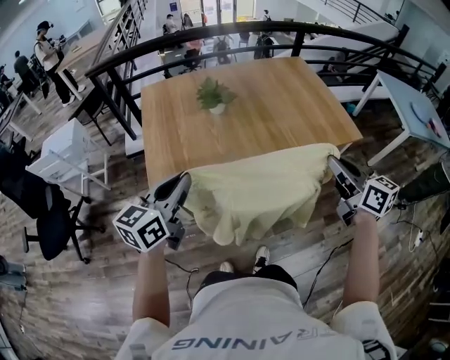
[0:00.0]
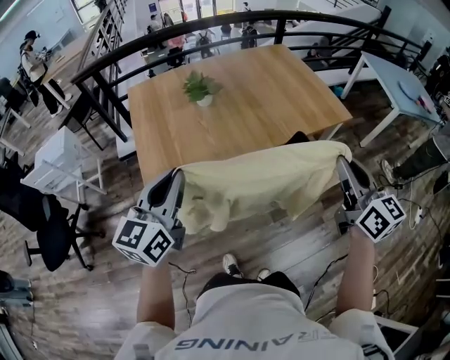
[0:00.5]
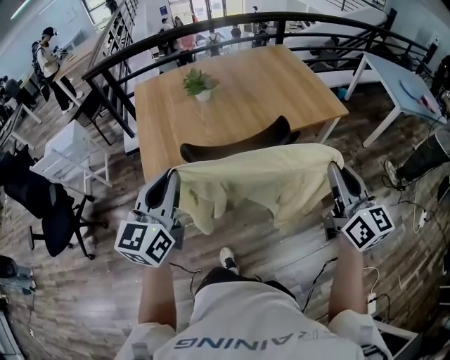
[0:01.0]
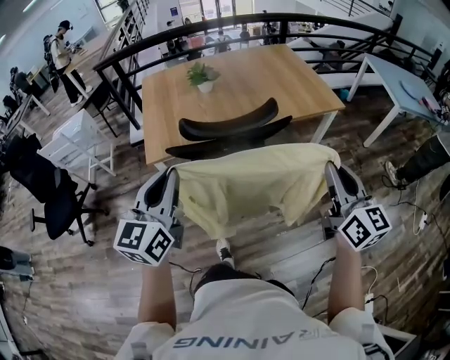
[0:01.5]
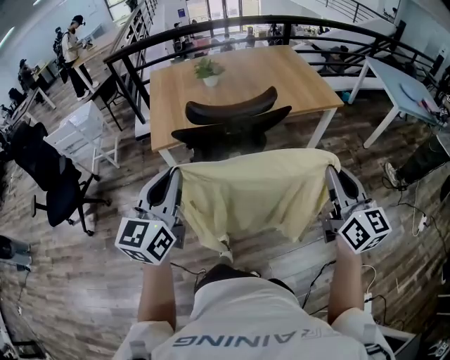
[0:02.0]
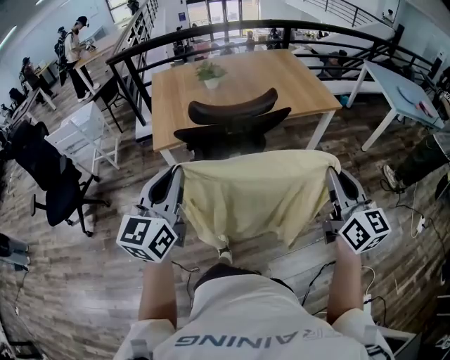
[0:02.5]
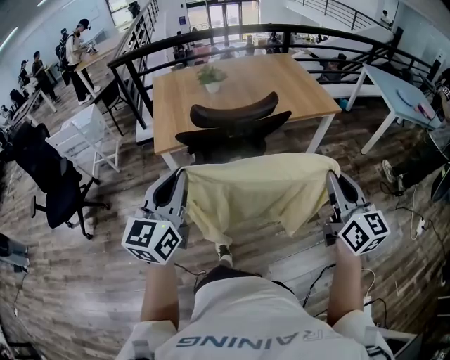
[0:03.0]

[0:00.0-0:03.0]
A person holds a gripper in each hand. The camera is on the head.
0:00.0 to 0:01.5: Both grippers move backward, roughly 25 cm. The right gripper rotates about 20 degrees, while the left gripper turns by approximately 20 degrees.
0:01.5 to 0:03.0: Both grippers move backward, approximately 10 cm.

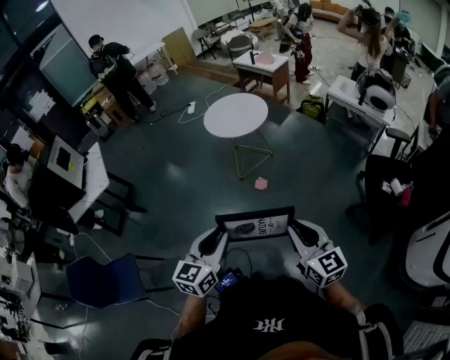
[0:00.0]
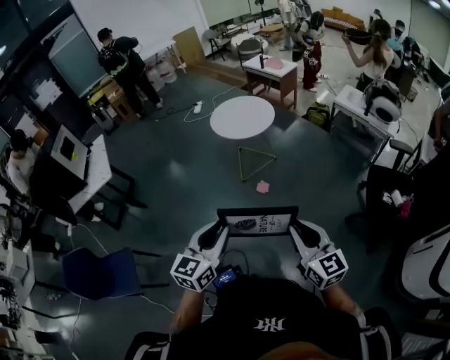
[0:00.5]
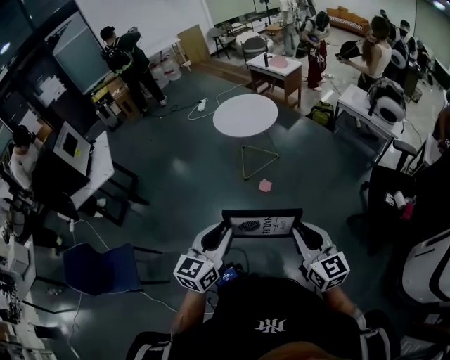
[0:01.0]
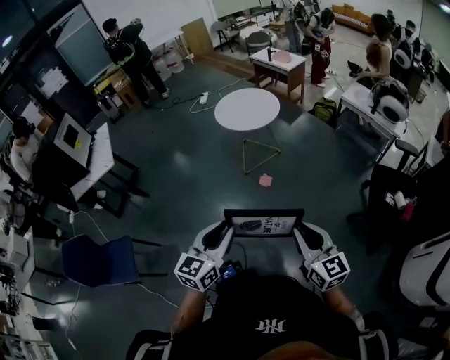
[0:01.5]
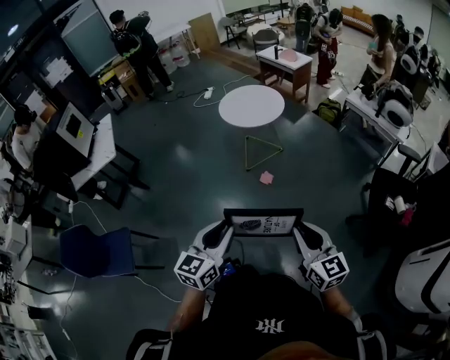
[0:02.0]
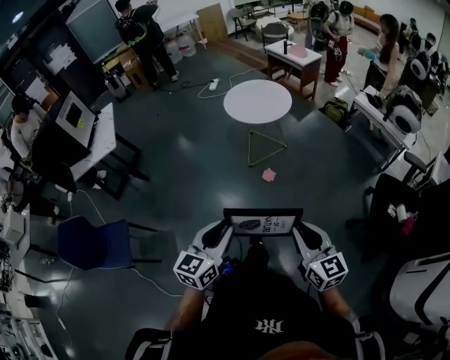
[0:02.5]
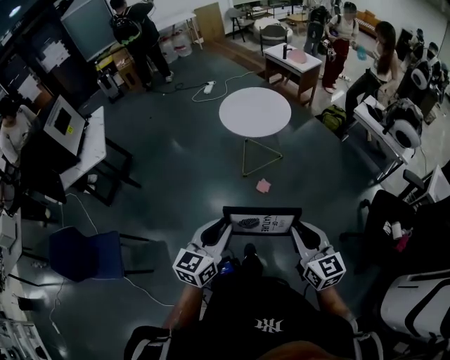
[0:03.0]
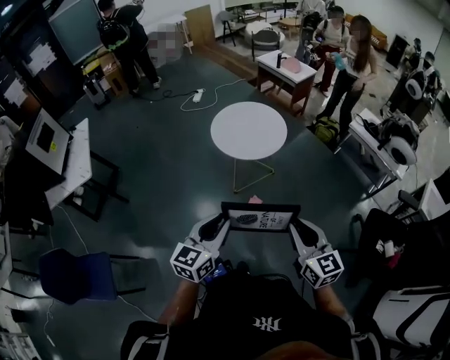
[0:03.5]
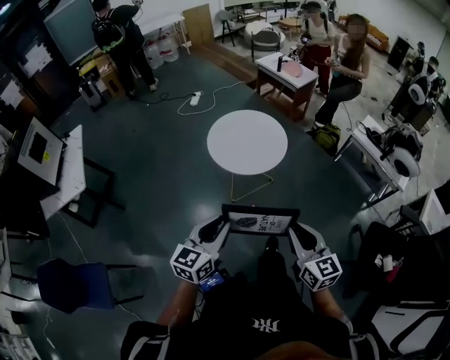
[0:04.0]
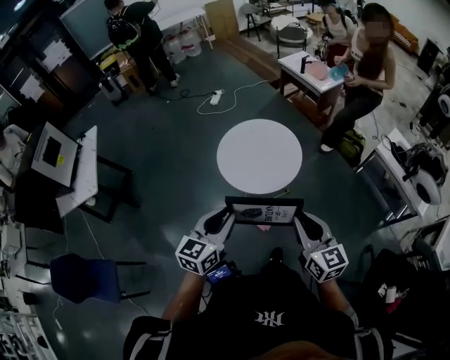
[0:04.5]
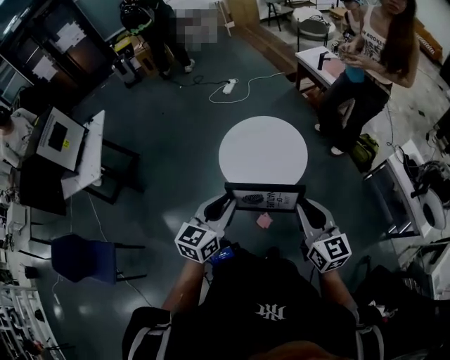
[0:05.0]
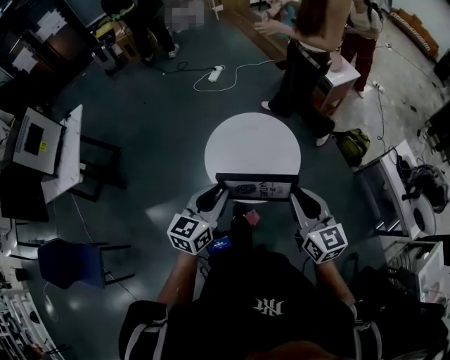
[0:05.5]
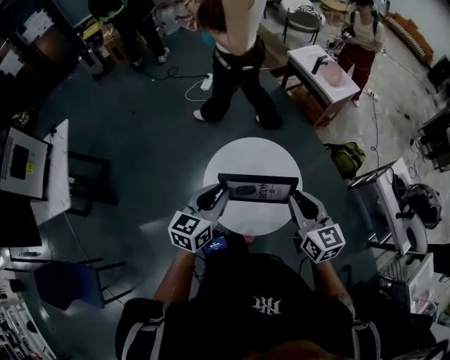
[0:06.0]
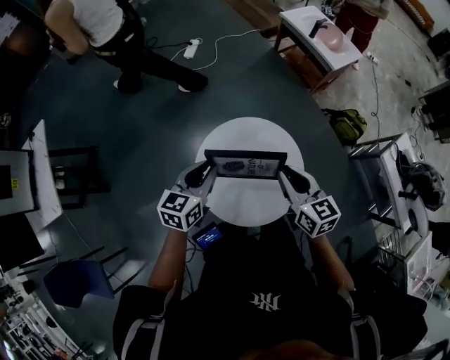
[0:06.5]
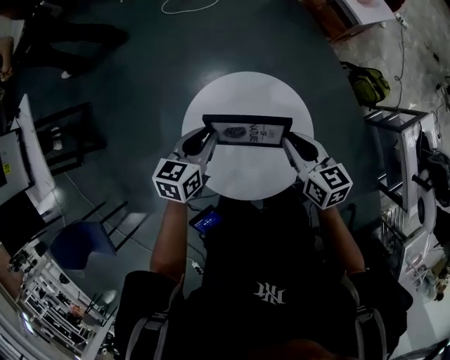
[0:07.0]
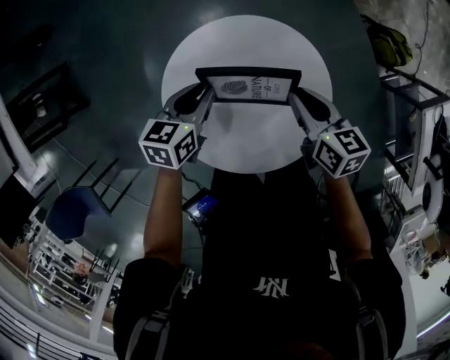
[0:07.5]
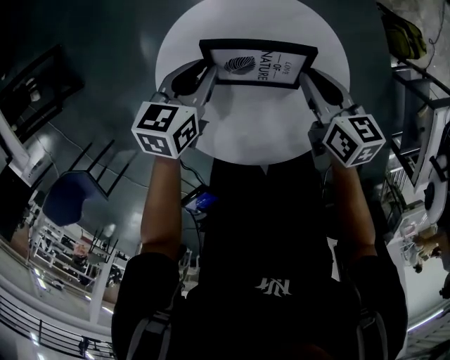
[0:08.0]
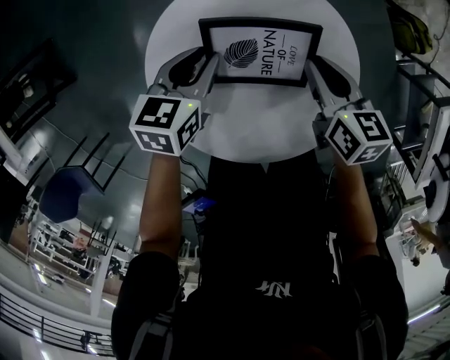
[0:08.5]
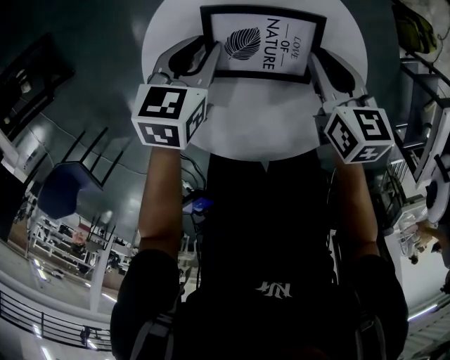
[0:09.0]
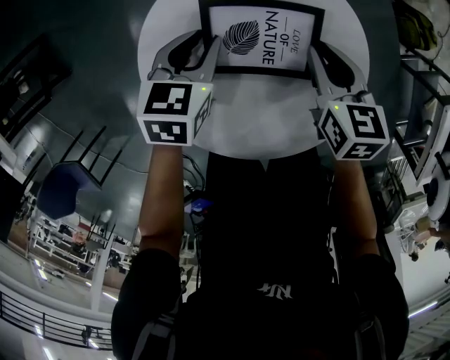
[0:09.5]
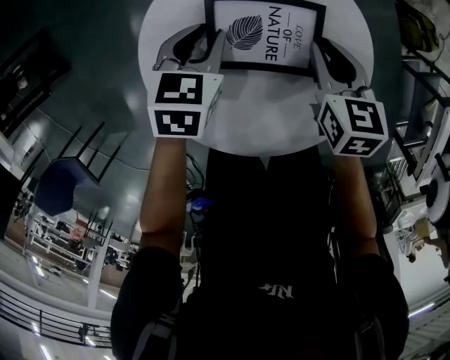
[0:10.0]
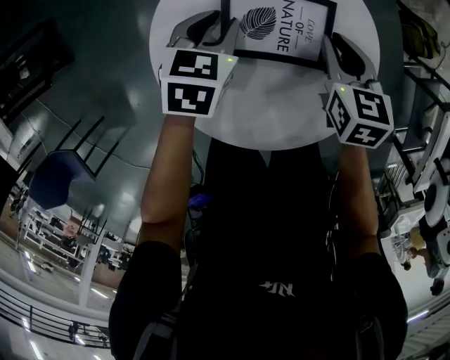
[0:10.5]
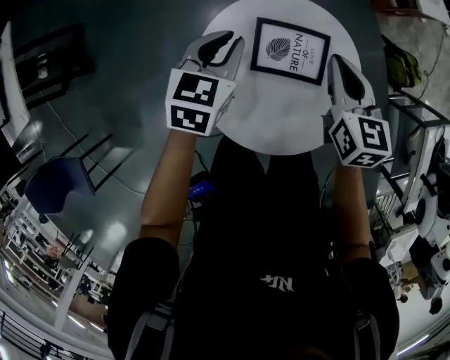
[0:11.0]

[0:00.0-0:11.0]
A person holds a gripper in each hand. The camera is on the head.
0:00.0 to 0:02.0: The grippers move only a little.
0:02.0 to 0:03.5: The two grippers go roughly 30 cm forward.
0:03.5 to 0:05.5: The two grippers travel together, forward, approximately 50 cm.
0:05.5 to 0:07.5: The grippers both shift forward and downward by approximately 50 cm. The left gripper swivels roughly 30 degrees; the right gripper turns by roughly 40 degrees.
0:07.5 to 0:09.0: Both grippers travel together downward, some 10 cm.
0:09.0 to 0:11.0: Both grippers travel together upward, roughly 15 cm. The right gripper swivels approximately 20 degrees.

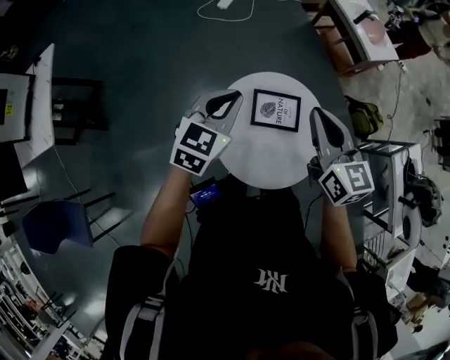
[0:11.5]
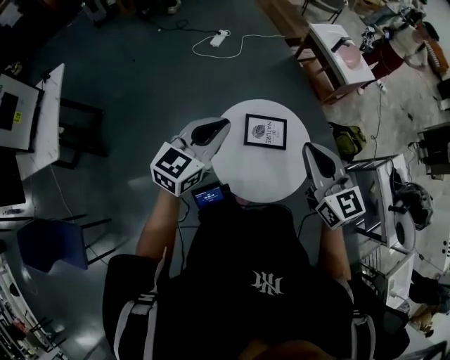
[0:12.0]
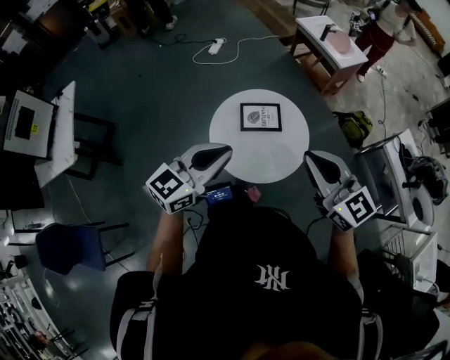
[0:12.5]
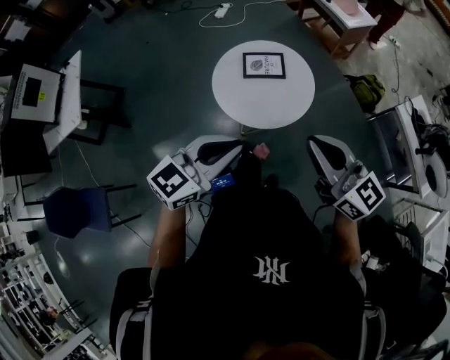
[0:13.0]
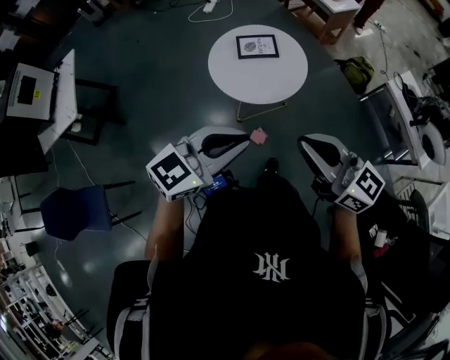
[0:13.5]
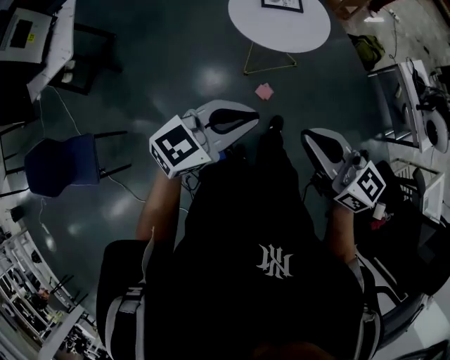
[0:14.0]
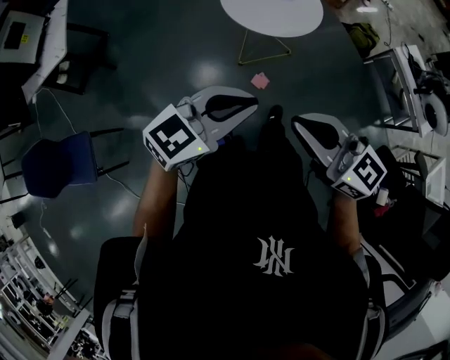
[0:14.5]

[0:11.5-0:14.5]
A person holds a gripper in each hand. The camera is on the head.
0:11.5 to 0:13.0: Both grippers are carried backward, roughly 40 cm. The left gripper turns by some 30 degrees. The right gripper turns by about 20 degrees.
0:13.0 to 0:14.5: The left gripper moves backward, roughly 30 cm; the right gripper shifts about 35 cm backward and to the left.

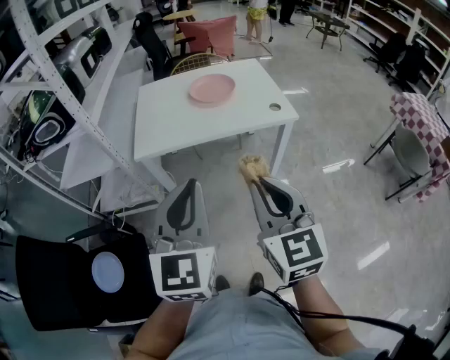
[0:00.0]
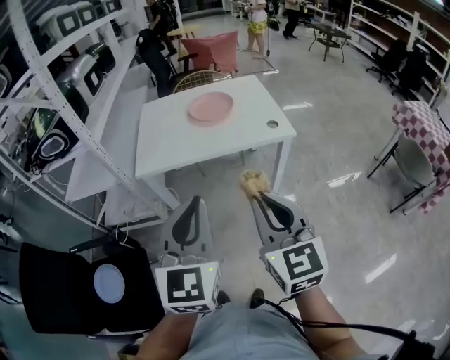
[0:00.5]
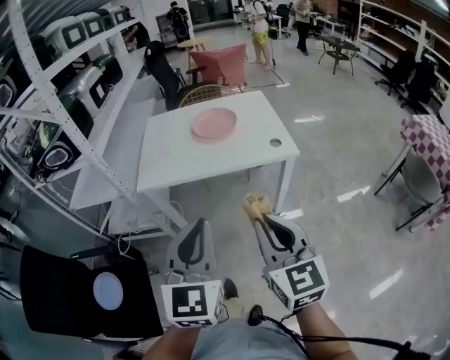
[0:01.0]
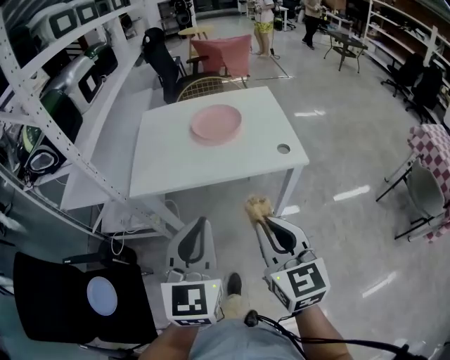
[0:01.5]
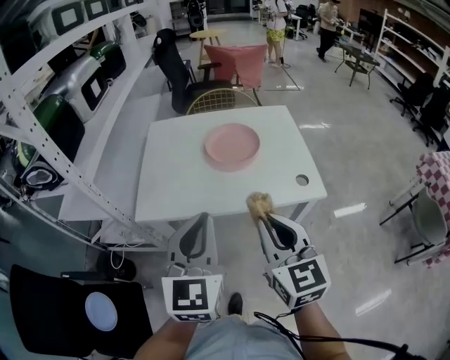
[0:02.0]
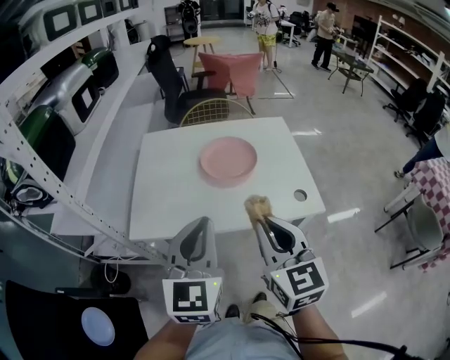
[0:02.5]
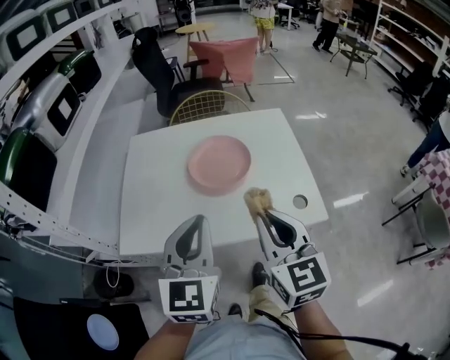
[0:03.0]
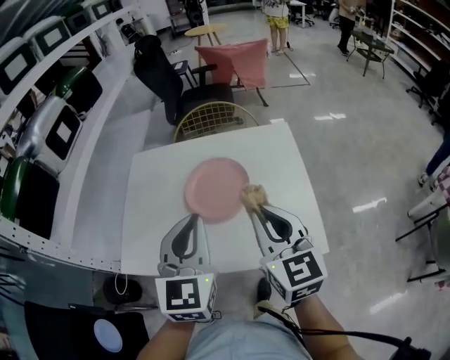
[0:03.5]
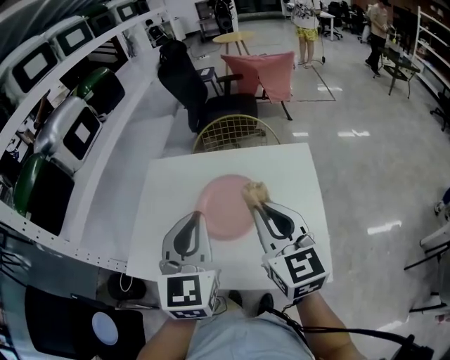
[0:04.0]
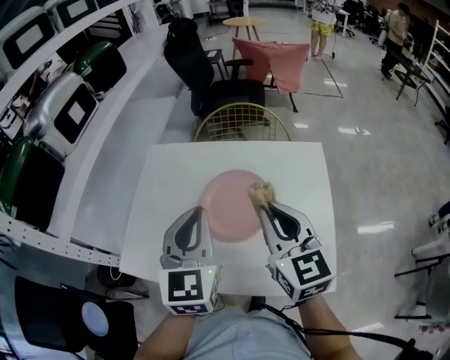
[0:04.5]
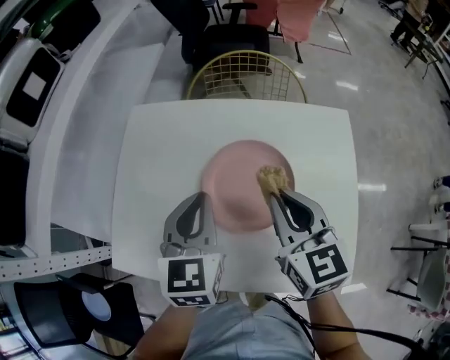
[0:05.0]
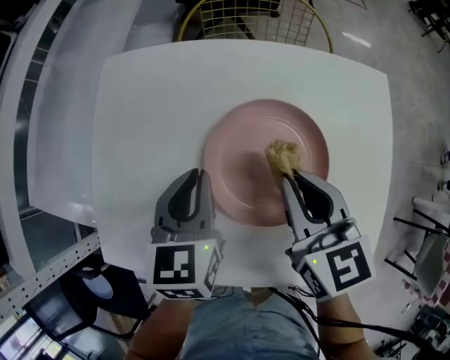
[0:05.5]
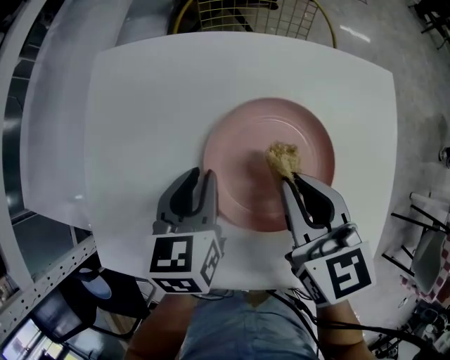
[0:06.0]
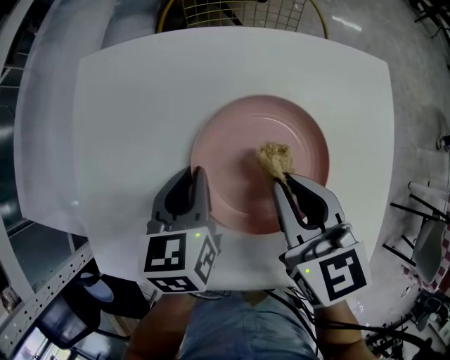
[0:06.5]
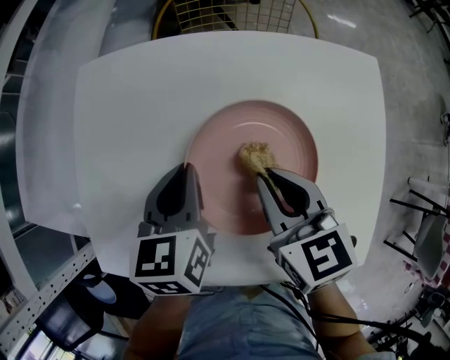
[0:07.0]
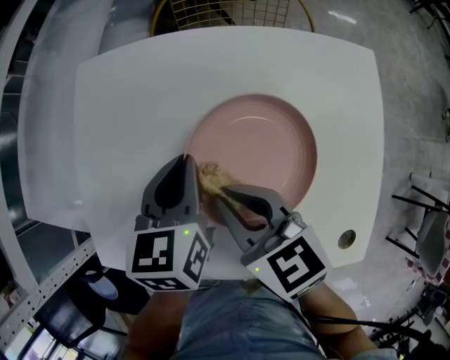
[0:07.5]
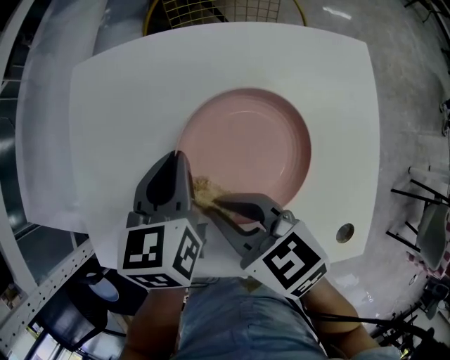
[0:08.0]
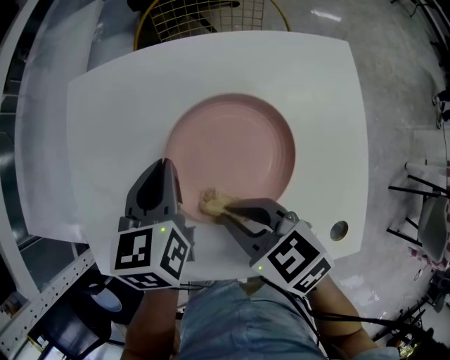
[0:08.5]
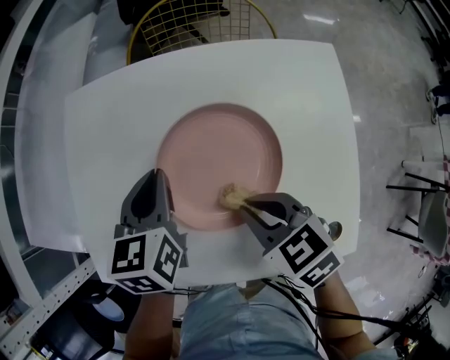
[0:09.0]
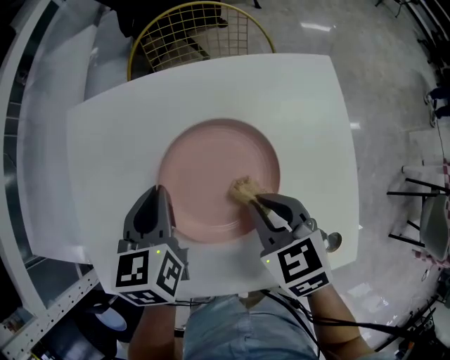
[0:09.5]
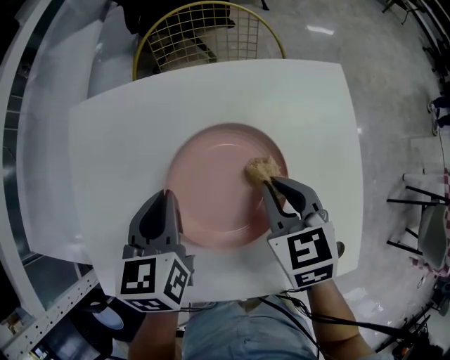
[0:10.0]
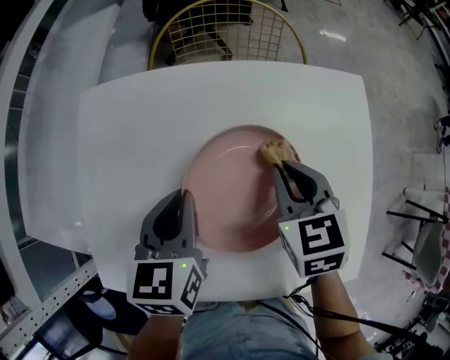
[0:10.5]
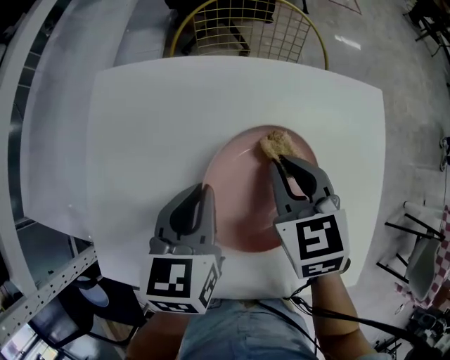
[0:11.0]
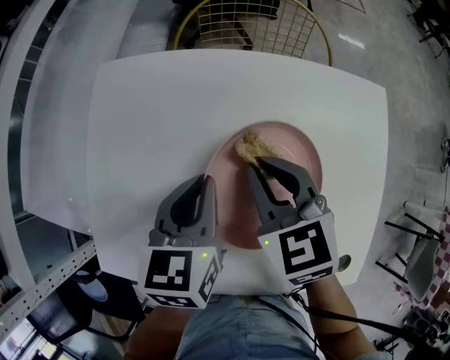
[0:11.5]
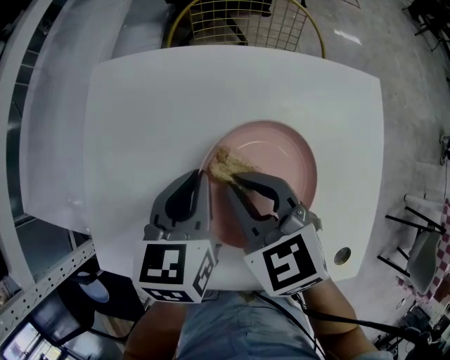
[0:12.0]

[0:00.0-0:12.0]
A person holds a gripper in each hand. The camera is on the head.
0:00.0 to 0:02.0: The two grippers go some 25 cm forward.
0:02.0 to 0:04.0: Both grippers travel together forward and to the right, roughly 30 cm.
0:04.0 to 0:06.0: The grippers both shift downward and forward by about 30 cm. The left gripper points its fingers about 30 degrees further downward; the right gripper turns by approximately 30 degrees.
0:06.0 to 0:08.0: The right gripper is displaced to the left and backward by about 10 cm, and rotates about 30 degrees.
0:08.0 to 0:10.0: The right gripper shifts some 15 cm to the right, and swivels about 40 degrees.
0:10.0 to 0:12.0: The right gripper goes some 15 cm to the left, and changes its angle by some 30 degrees.
